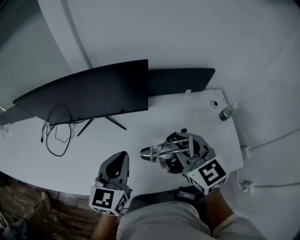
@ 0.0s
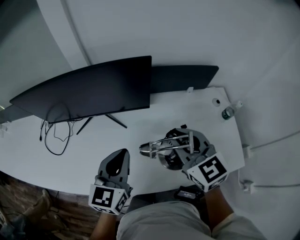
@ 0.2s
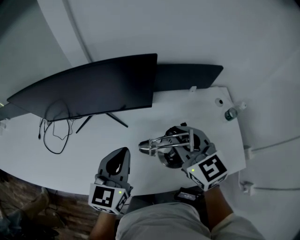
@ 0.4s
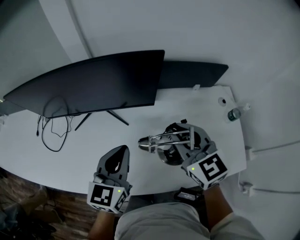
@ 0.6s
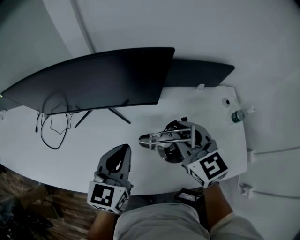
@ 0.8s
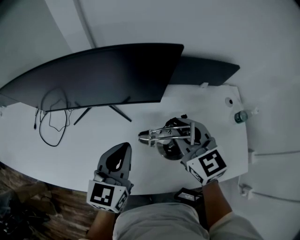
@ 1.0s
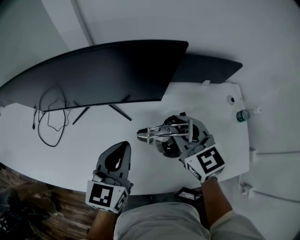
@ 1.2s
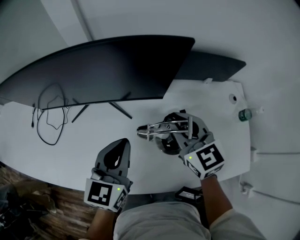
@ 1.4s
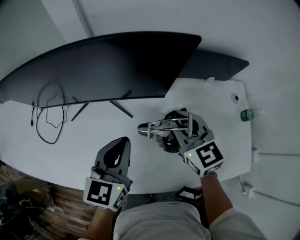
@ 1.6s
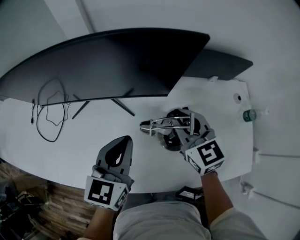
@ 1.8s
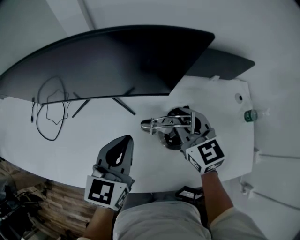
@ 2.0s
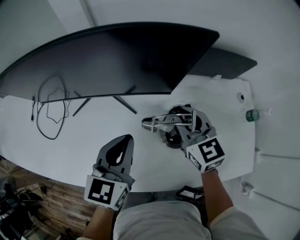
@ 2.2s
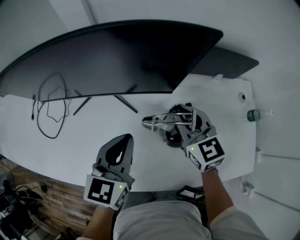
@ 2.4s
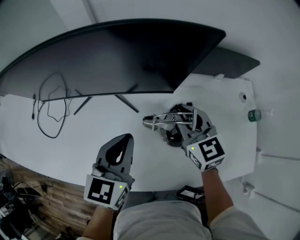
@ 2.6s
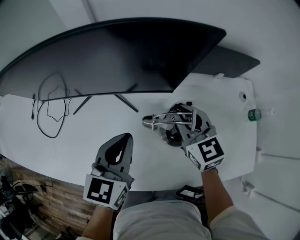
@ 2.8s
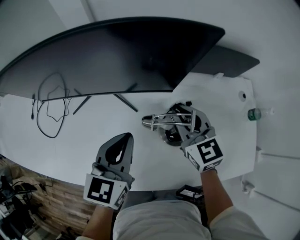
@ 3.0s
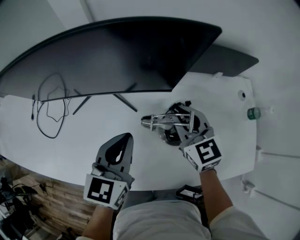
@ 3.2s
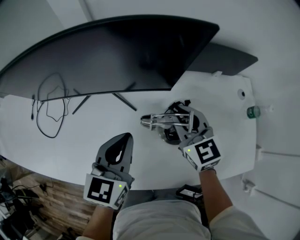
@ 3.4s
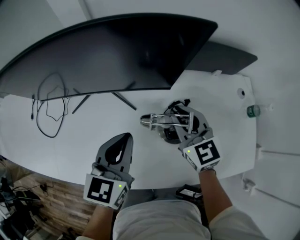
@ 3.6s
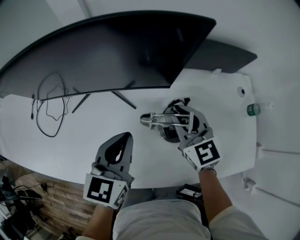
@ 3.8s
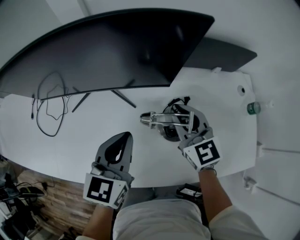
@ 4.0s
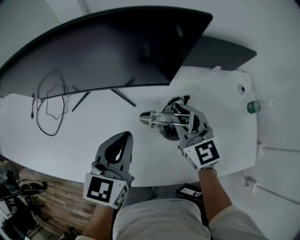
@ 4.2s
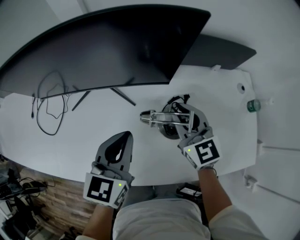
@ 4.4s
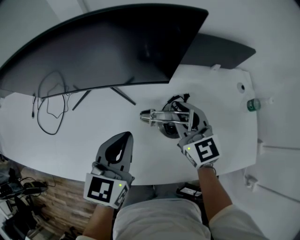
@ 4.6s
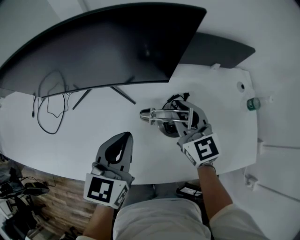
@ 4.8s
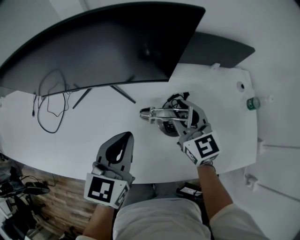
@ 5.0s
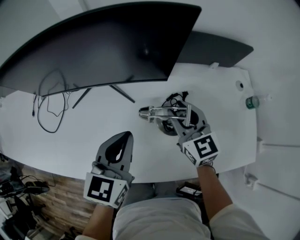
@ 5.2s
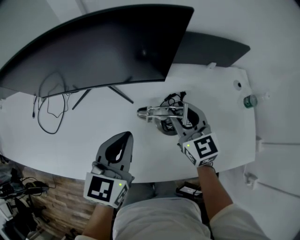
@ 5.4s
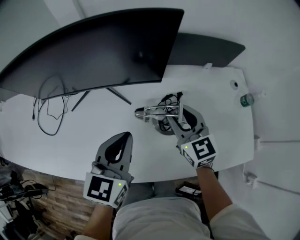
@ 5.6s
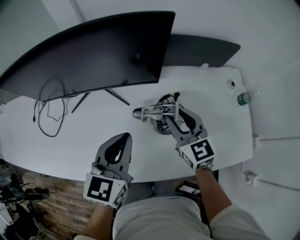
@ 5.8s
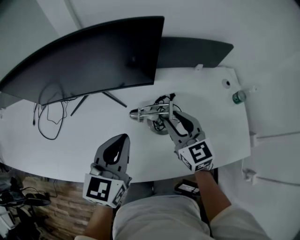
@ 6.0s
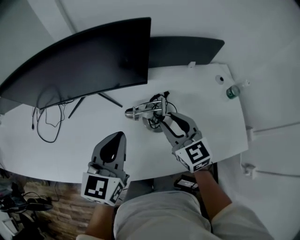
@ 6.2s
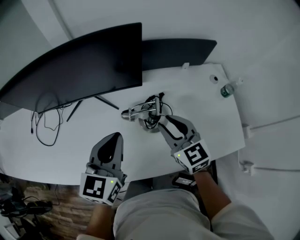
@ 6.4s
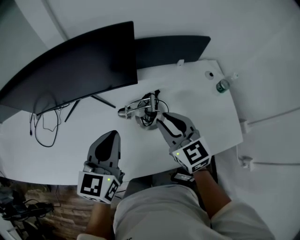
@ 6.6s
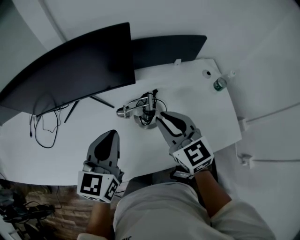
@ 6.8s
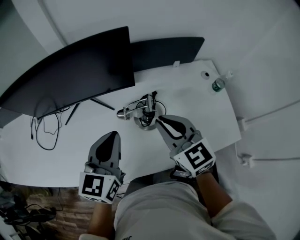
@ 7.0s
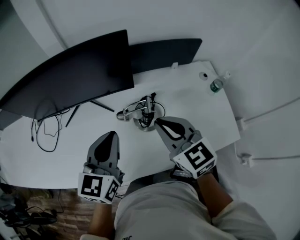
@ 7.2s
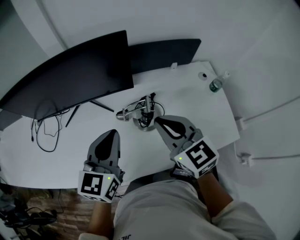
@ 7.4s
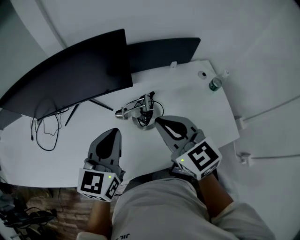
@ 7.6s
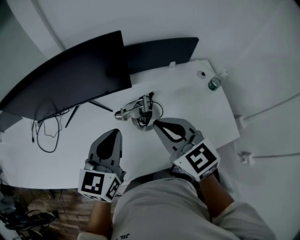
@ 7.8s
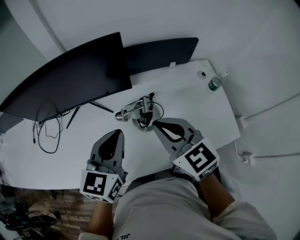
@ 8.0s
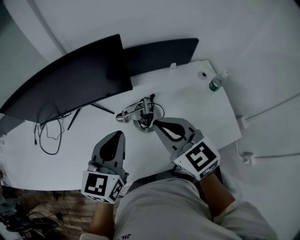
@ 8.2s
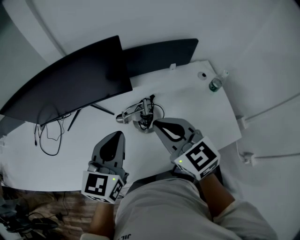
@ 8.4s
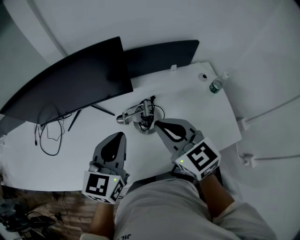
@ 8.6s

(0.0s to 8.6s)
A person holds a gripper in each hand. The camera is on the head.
0.0s - 1.4s: The right gripper is displaced forward and downward by approximately 15 cm. The left gripper travels forward and downward by about 10 cm.
1.4s - 2.8s: The right gripper changes place by about 5 cm.
2.8s - 4.4s: The grippers make only small movements.
4.4s - 5.8s: The right gripper shifts by about 5 cm, and opens.
5.8s - 7.2s: The left gripper heads upward, covering roughly 5 cm; the right gripper goes some 15 cm upward and backward, and closes its fingers.
7.2s - 8.6s: The grippers move only a little.

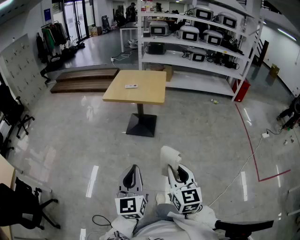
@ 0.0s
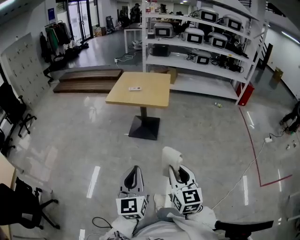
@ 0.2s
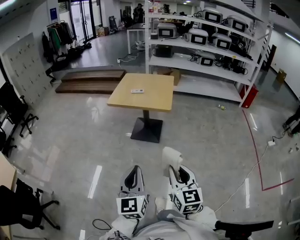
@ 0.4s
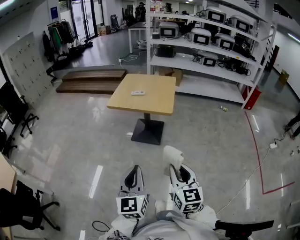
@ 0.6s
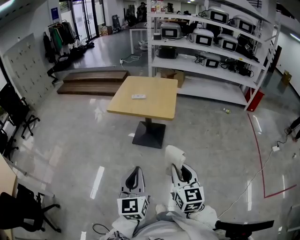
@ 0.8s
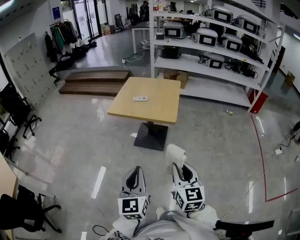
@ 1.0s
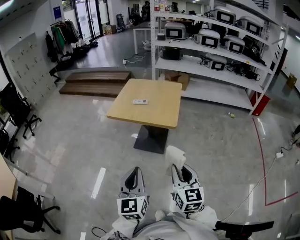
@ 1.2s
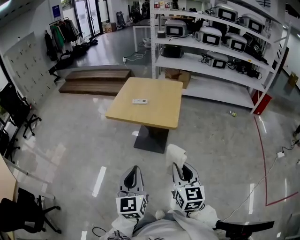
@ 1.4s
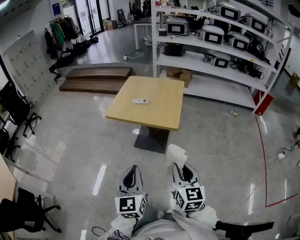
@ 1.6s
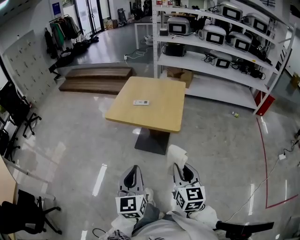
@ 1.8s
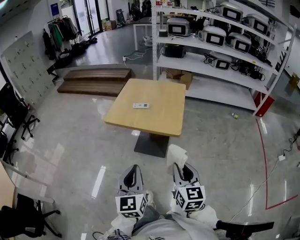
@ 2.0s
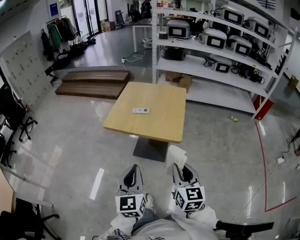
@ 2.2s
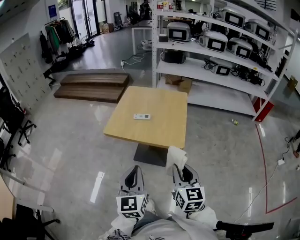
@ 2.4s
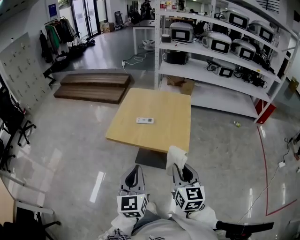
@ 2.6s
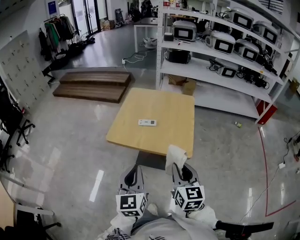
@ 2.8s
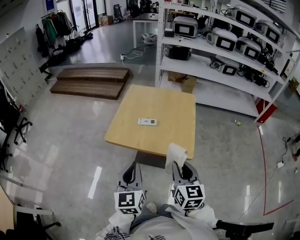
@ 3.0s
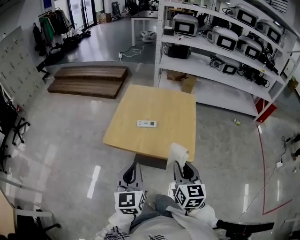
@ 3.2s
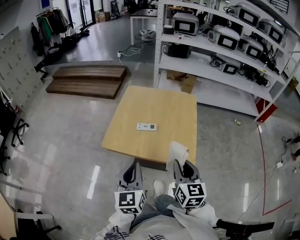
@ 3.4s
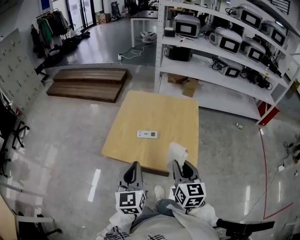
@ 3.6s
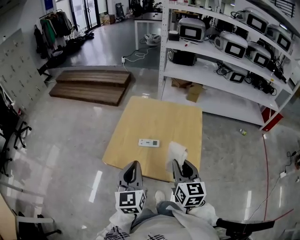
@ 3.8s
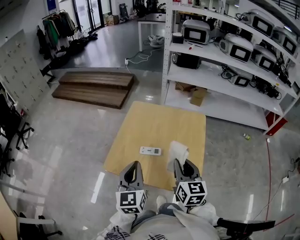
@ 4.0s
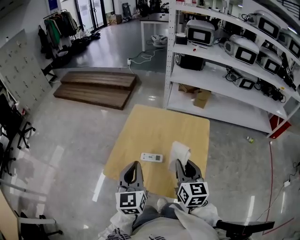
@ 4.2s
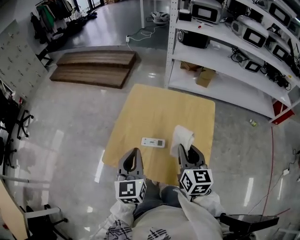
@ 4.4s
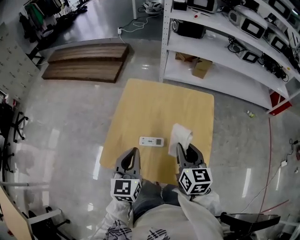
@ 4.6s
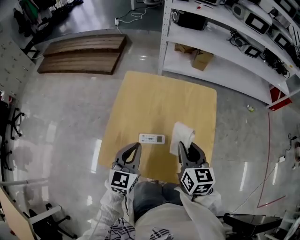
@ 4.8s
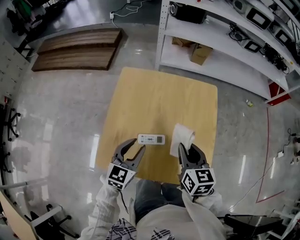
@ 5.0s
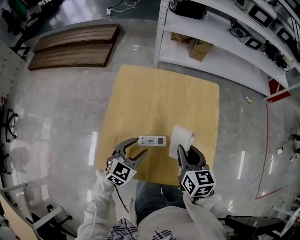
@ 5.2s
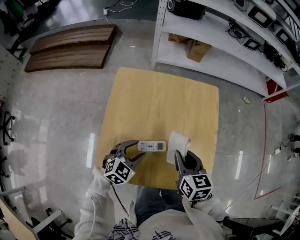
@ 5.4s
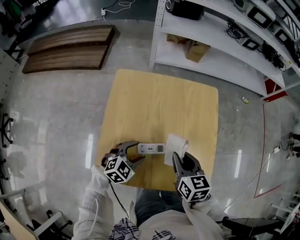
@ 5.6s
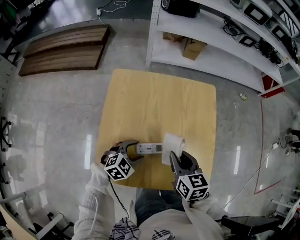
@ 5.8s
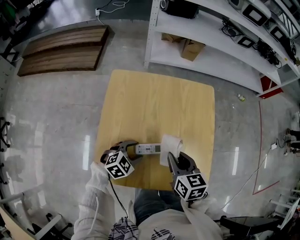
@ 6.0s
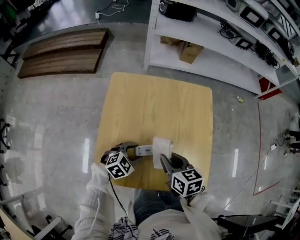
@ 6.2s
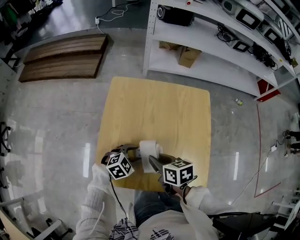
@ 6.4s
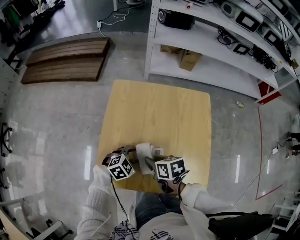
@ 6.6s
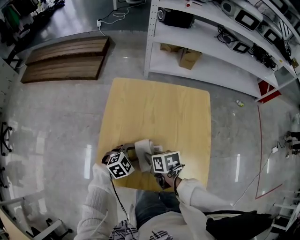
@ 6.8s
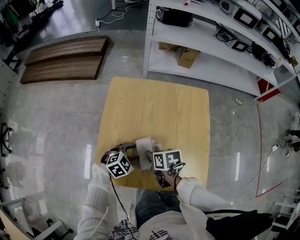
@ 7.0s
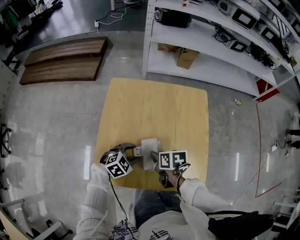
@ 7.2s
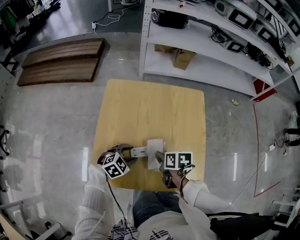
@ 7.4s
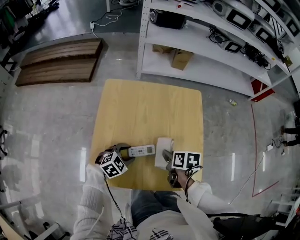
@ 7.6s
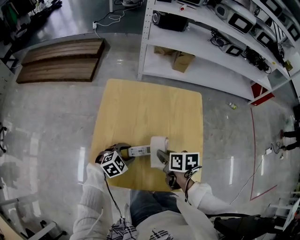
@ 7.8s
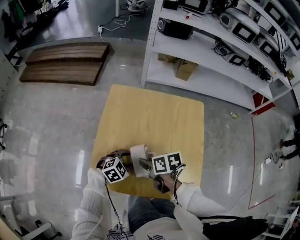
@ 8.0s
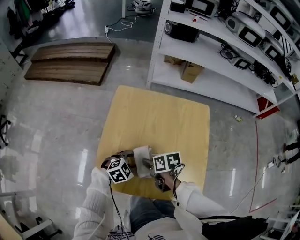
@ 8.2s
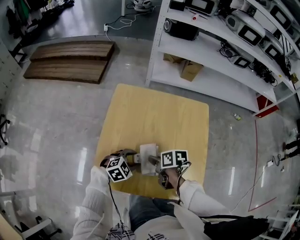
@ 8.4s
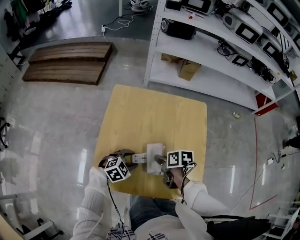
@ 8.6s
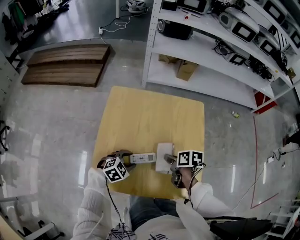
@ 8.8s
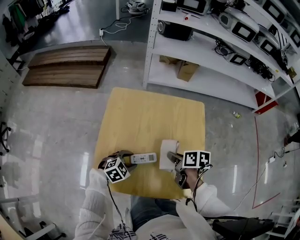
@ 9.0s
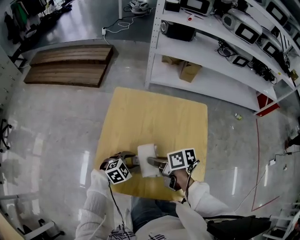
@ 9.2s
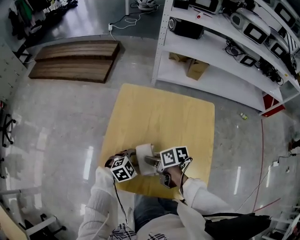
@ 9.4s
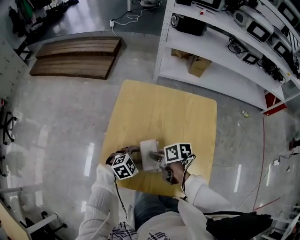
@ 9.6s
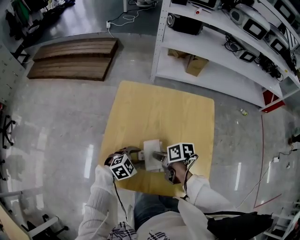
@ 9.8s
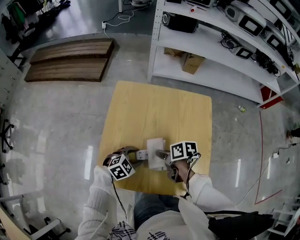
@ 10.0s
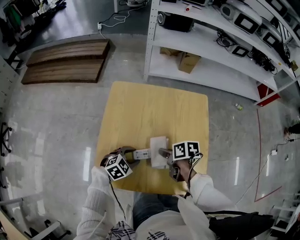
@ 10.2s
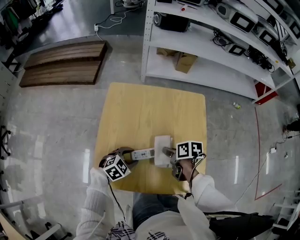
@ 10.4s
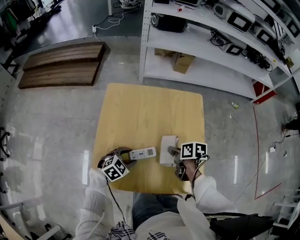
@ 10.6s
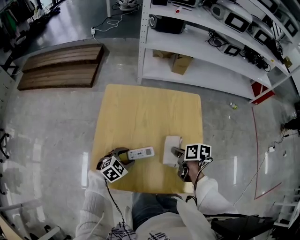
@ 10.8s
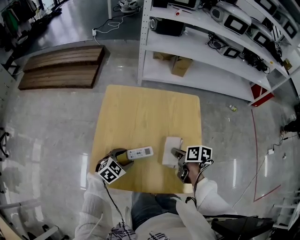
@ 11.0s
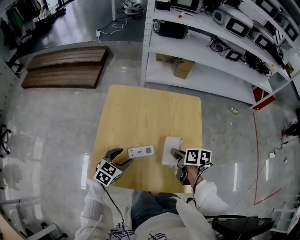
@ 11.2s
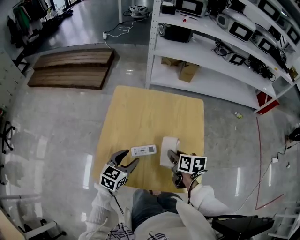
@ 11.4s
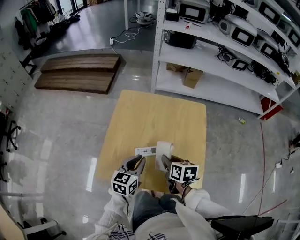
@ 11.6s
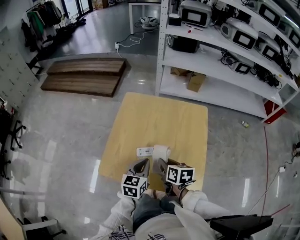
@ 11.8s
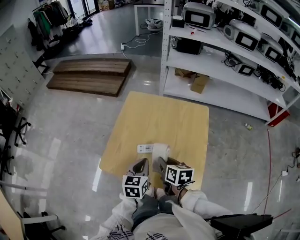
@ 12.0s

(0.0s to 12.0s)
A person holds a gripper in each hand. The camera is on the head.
0.0s - 1.6s: Both grippers move forward, roughly 30 cm.
1.6s - 3.0s: Both grippers move forward, approximately 25 cm.
3.0s - 4.4s: Both grippers travel together forward, approximately 30 cm.
4.4s - 6.0s: The left gripper shifts roughly 25 cm downward, tilts its fingers about 40 degrees downward, and opens up. The right gripper moves downward, approximately 10 cm, and changes its angle by roughly 20 degrees.
6.0s - 7.6s: The right gripper shifts about 5 cm downward, reaches roughly 10 cm to the left, then returns, and changes its angle by about 30 degrees.
10.4s - 12.0s: The left gripper is displaced upward and backward by roughly 15 cm, rotates some 60 degrees, and closes. Meanwhile the right gripper is displaced backward and upward by about 10 cm, travels to the right and back again, approximately 5 cm each way, and turns by about 30 degrees.

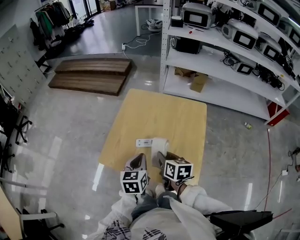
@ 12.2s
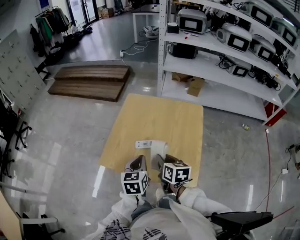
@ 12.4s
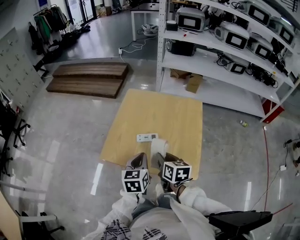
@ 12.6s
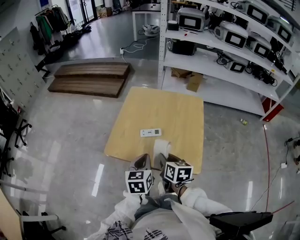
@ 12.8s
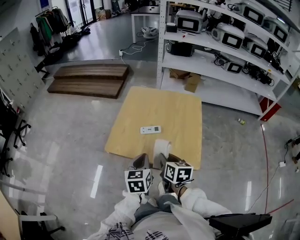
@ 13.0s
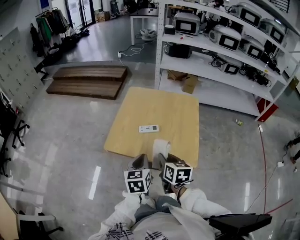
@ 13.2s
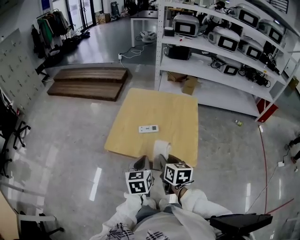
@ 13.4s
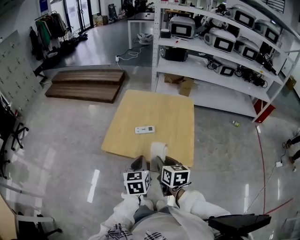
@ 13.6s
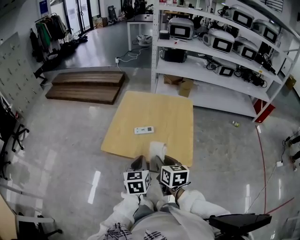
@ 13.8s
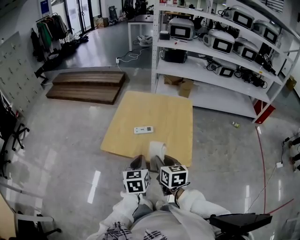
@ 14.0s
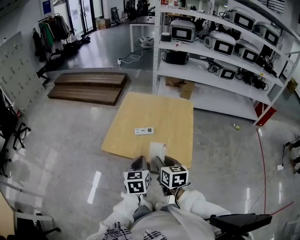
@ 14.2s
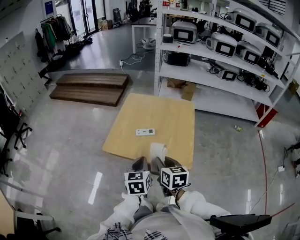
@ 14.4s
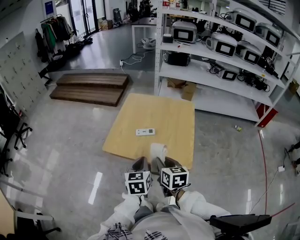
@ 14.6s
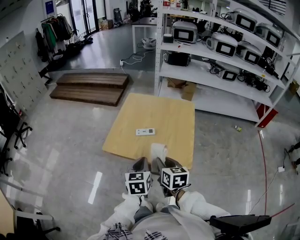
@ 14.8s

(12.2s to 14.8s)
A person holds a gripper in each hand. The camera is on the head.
12.2s - 13.4s: Both grippers move backward, approximately 15 cm.
13.4s - 14.8s: The grippers make only small movements.
